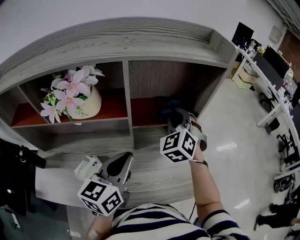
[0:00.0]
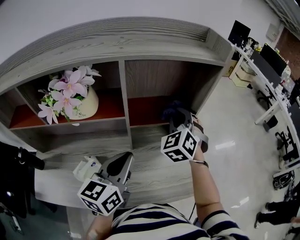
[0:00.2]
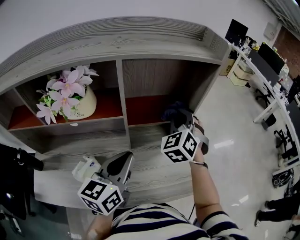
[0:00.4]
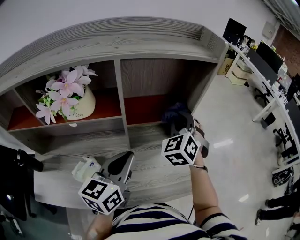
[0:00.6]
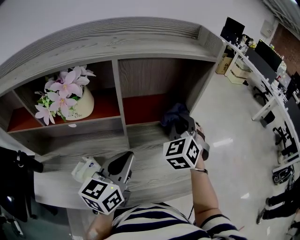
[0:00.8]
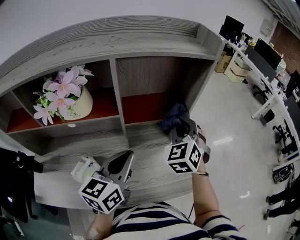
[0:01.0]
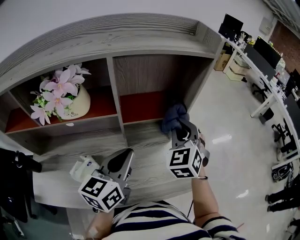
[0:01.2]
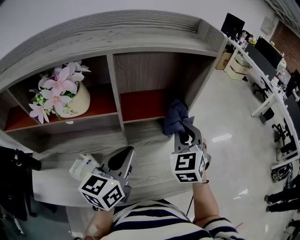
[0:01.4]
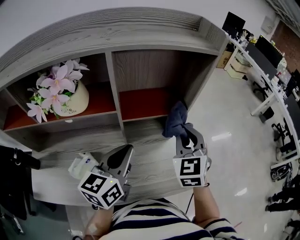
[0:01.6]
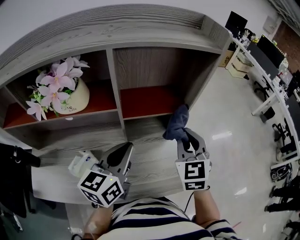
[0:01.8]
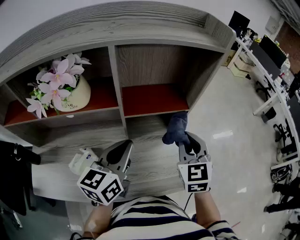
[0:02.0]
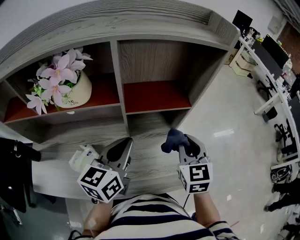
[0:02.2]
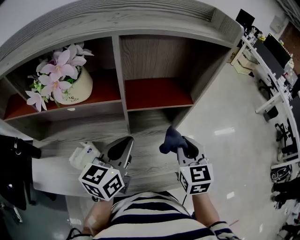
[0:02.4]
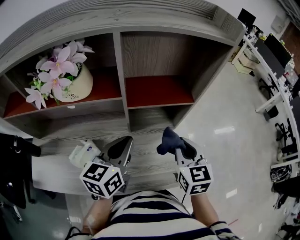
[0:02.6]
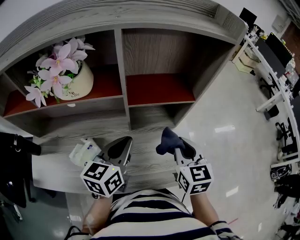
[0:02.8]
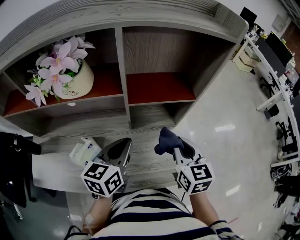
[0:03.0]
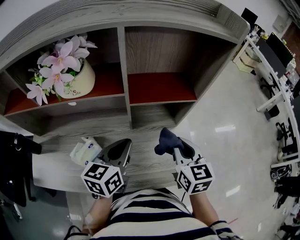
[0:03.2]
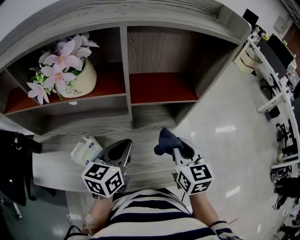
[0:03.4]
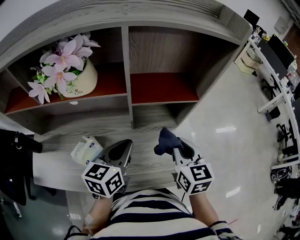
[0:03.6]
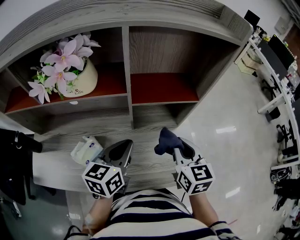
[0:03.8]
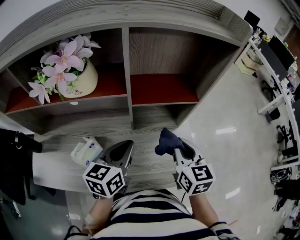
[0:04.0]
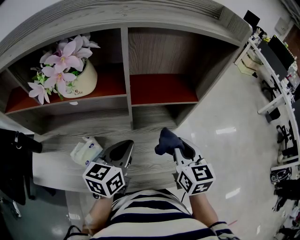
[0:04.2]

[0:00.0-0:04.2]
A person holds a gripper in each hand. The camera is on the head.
0.0 to 1.4 s: The right gripper shifts approximately 10 cm to the right and backward.
1.4 to 2.8 s: The left gripper heads downward, covering roughly 5 cm. The right gripper shifts some 10 cm backward and downward, and changes its angle by about 30 degrees.
2.8 to 4.2 s: The grippers move only a little.

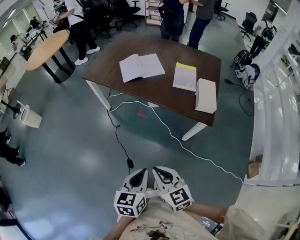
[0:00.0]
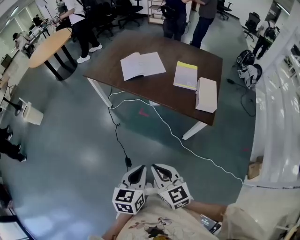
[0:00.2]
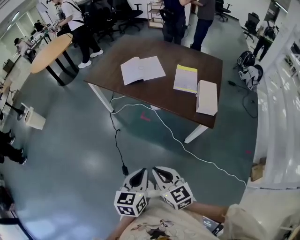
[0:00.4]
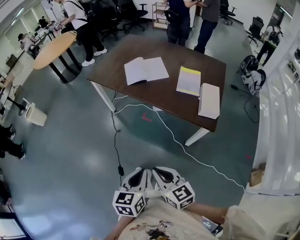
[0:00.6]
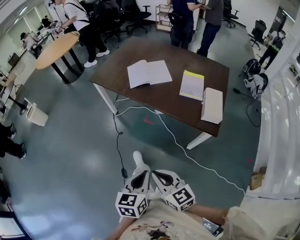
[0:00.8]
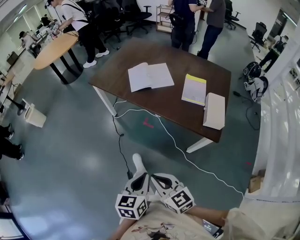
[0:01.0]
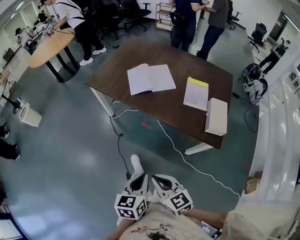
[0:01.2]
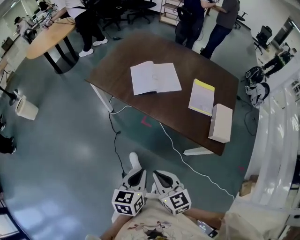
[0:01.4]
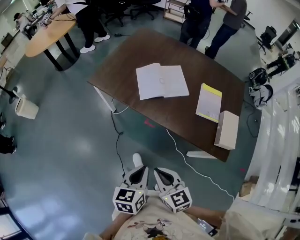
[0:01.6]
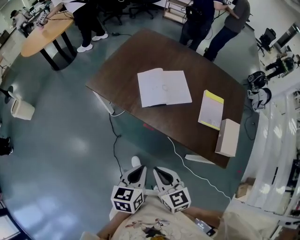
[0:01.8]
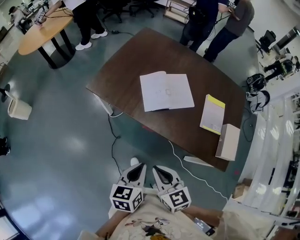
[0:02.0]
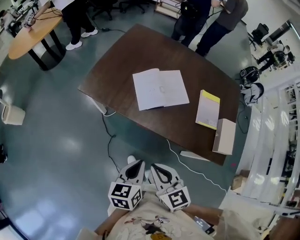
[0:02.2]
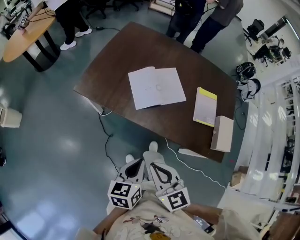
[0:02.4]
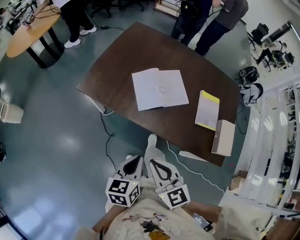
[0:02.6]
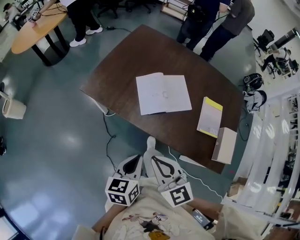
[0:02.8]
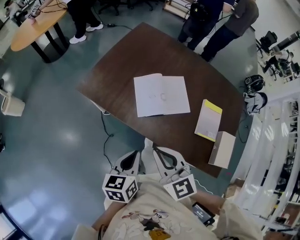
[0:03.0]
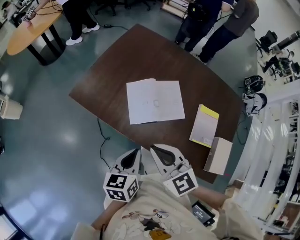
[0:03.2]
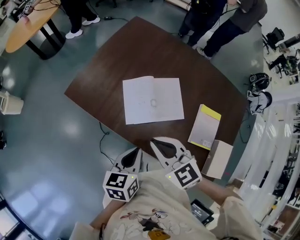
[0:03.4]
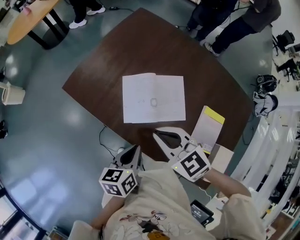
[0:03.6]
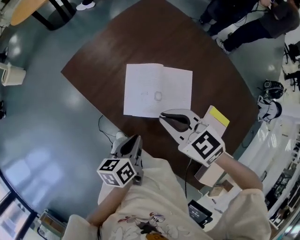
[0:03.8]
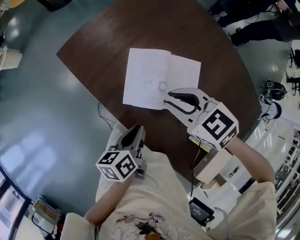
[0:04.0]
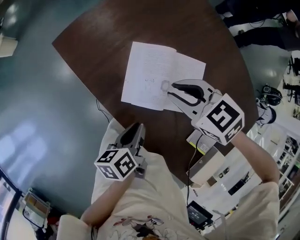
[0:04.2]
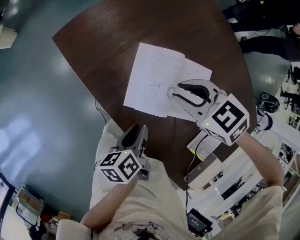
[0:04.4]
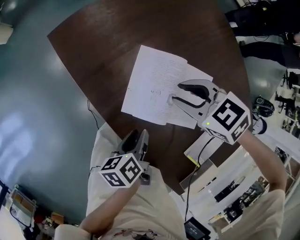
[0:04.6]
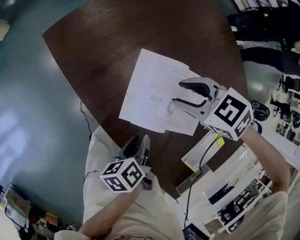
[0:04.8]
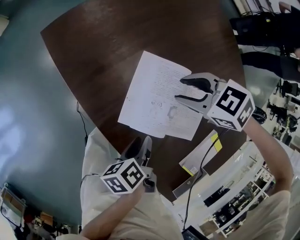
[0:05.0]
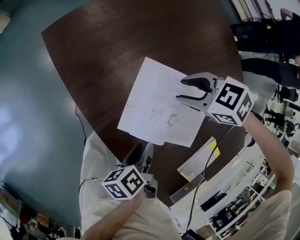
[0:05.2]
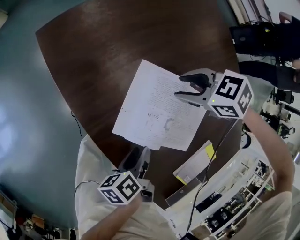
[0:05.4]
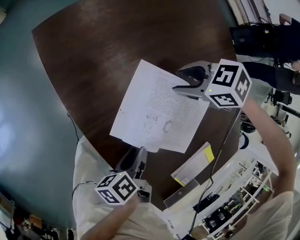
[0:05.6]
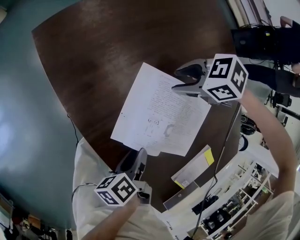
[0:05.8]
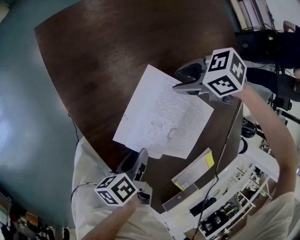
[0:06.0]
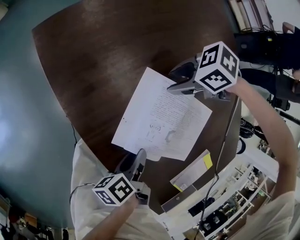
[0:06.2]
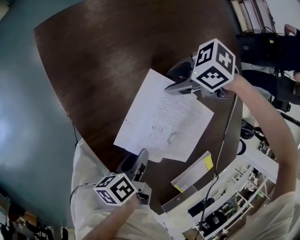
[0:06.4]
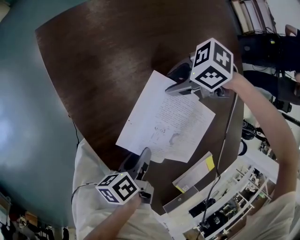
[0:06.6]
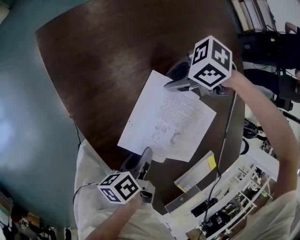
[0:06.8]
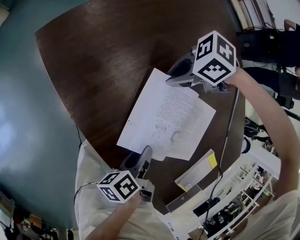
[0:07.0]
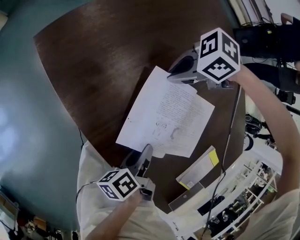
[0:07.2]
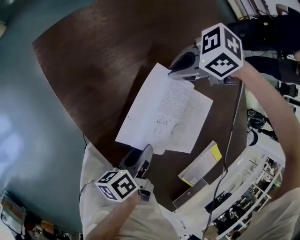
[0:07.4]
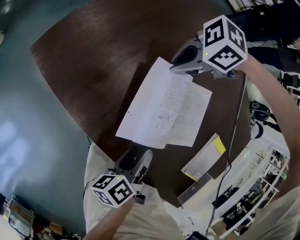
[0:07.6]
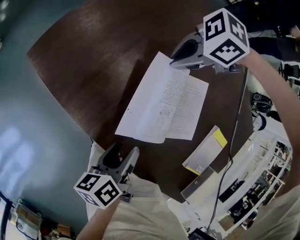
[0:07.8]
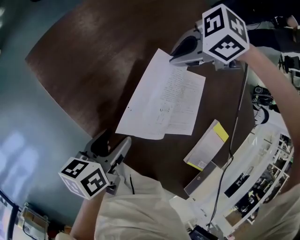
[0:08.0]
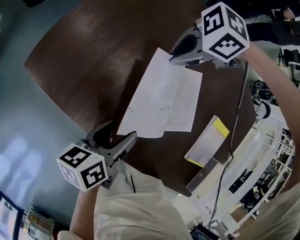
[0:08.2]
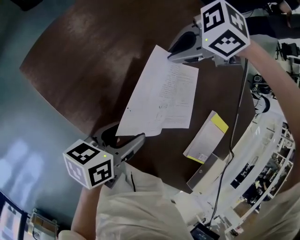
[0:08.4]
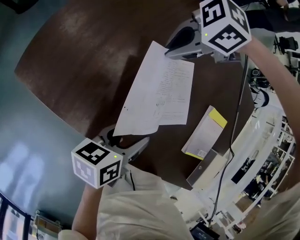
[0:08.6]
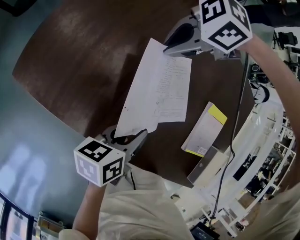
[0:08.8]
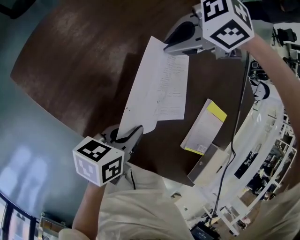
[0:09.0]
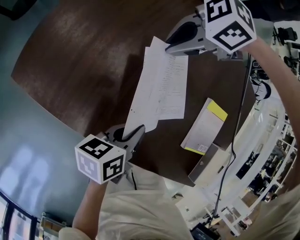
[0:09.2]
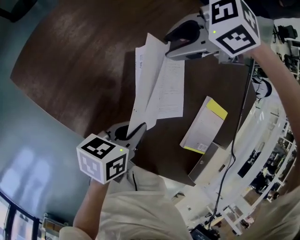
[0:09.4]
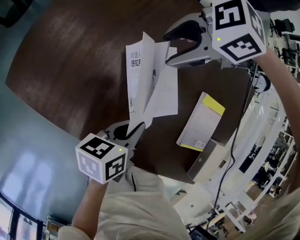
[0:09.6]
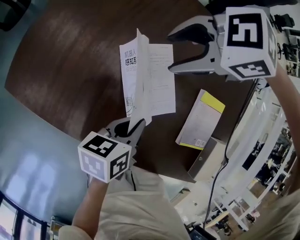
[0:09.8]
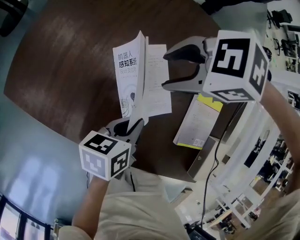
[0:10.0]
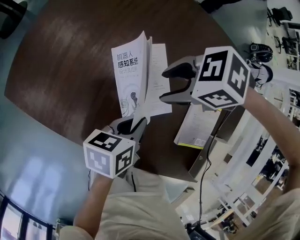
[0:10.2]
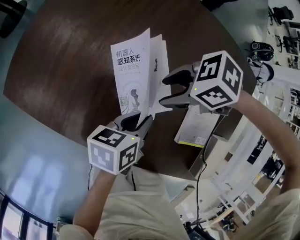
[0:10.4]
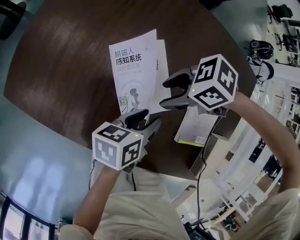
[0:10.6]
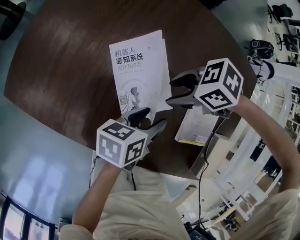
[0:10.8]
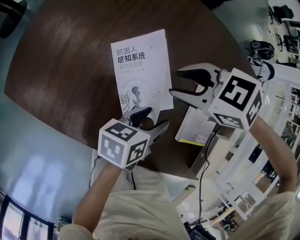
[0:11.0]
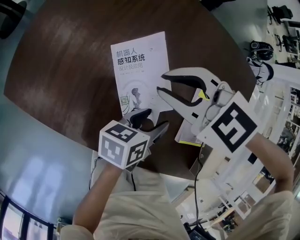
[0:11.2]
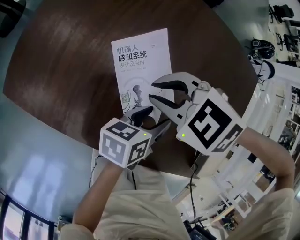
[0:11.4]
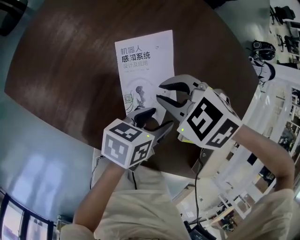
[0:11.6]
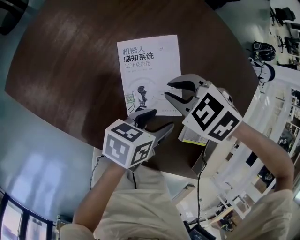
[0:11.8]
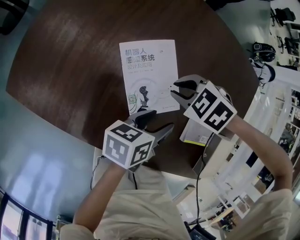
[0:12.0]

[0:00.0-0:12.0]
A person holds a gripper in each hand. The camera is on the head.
0.0 to 1.6 s: The grippers both shift forward by about 25 cm.
1.6 to 3.0 s: The two grippers go about 25 cm forward.
3.0 to 4.4 s: The right gripper shifts by approximately 35 cm, rotates about 50 degrees, and opens its fingers; the left gripper travels downward by roughly 20 cm, rotates around the line of its fingers by about 40 degrees, counterclockwise from behind, and opens.
4.4 to 6.0 s: The right gripper is displaced downward by some 15 cm, turns by about 40 degrees, and opens up. The left gripper goes approximately 10 cm downward, and swivels roughly 30 degrees.
6.0 to 7.6 s: Both grippers move upward, about 5 cm. The right gripper closes up.
7.6 to 9.0 s: The right gripper ends up roughly 10 cm from where it was, while the left gripper shifts by about 5 cm, turns by approximately 50 degrees, and closes up.
9.0 to 10.4 s: The right gripper ends up approximately 15 cm from where it was, changes its angle by roughly 30 degrees, and opens, while the left gripper shifts by some 10 cm.
10.4 to 12.0 s: The left gripper opens up, while the right gripper goes upward and returns, roughly 10 cm each way, turns by some 30 degrees, and closes.

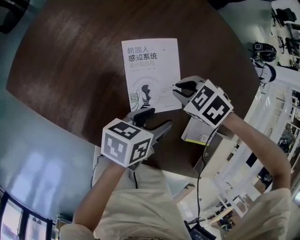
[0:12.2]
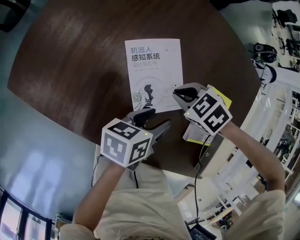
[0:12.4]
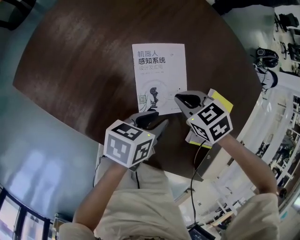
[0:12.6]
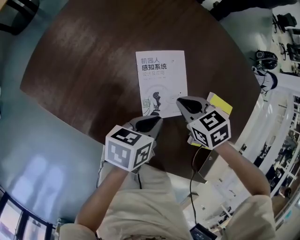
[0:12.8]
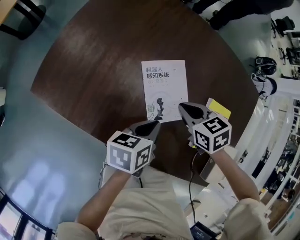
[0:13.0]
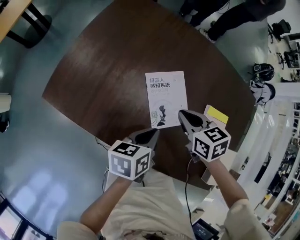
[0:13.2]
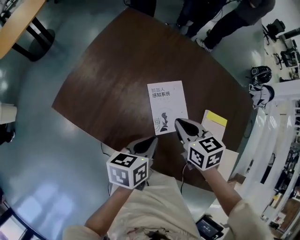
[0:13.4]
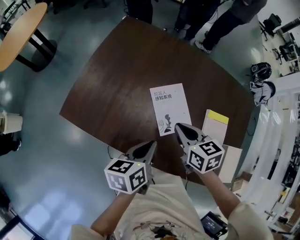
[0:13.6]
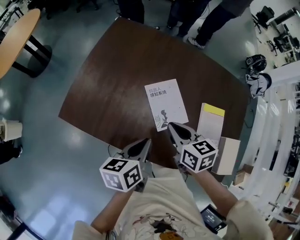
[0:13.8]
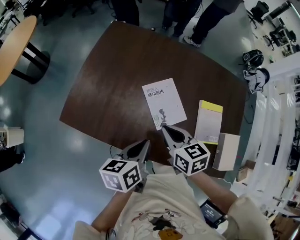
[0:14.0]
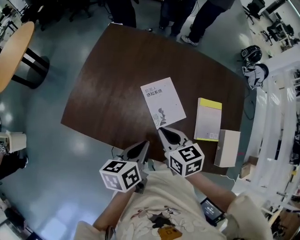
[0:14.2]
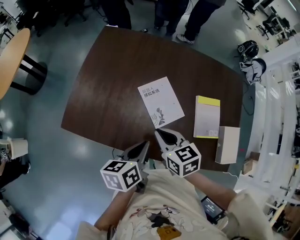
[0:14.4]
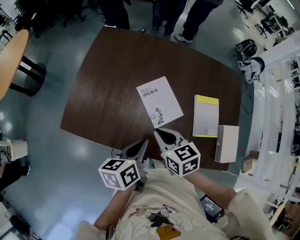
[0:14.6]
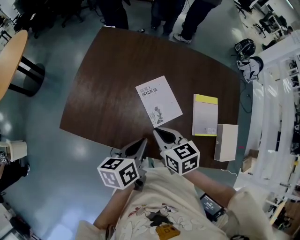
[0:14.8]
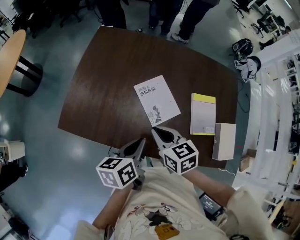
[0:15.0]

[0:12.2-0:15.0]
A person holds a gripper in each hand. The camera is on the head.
12.2 to 13.6 s: The two grippers go some 15 cm upward. The right gripper points its fingers roughly 30 degrees further upward. The left gripper closes its fingers.
13.6 to 15.0 s: The right gripper heads backward, covering some 5 cm.

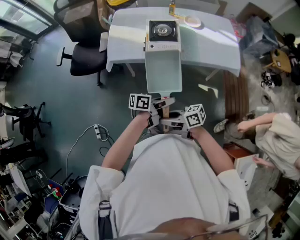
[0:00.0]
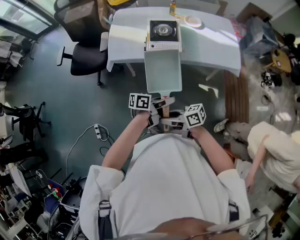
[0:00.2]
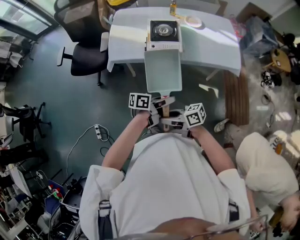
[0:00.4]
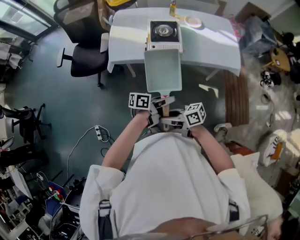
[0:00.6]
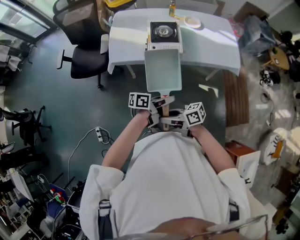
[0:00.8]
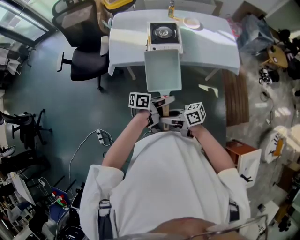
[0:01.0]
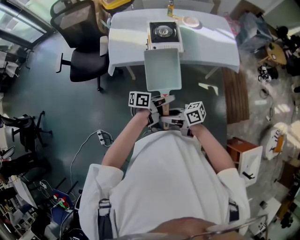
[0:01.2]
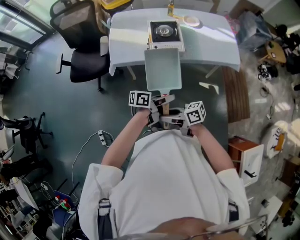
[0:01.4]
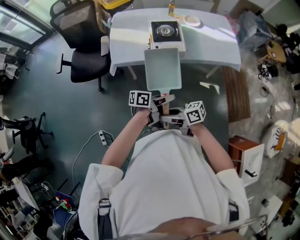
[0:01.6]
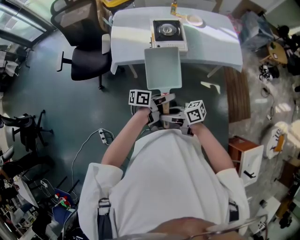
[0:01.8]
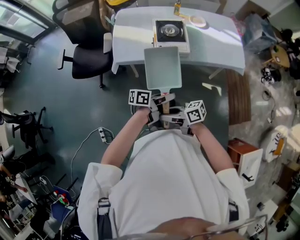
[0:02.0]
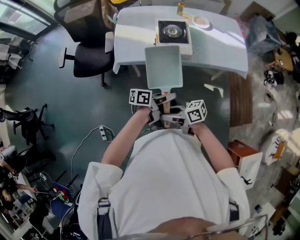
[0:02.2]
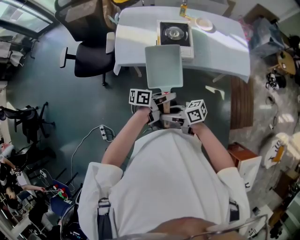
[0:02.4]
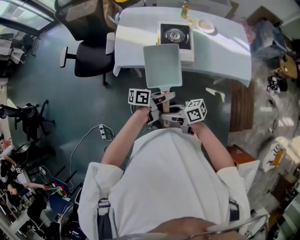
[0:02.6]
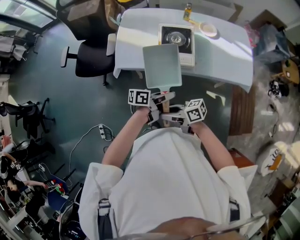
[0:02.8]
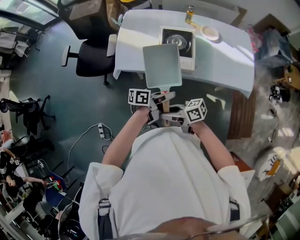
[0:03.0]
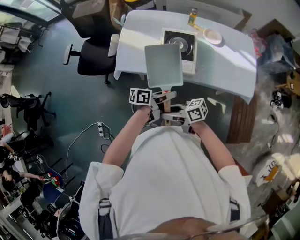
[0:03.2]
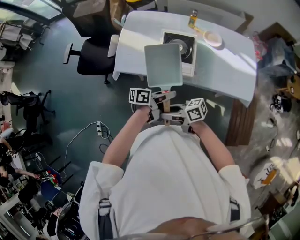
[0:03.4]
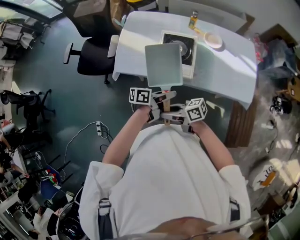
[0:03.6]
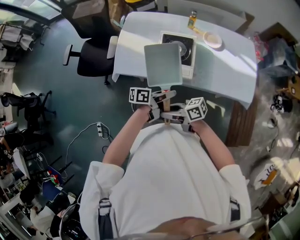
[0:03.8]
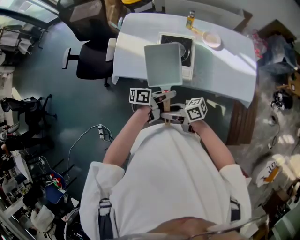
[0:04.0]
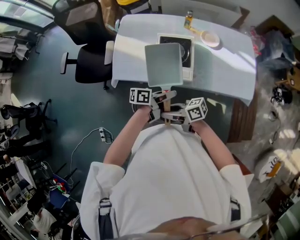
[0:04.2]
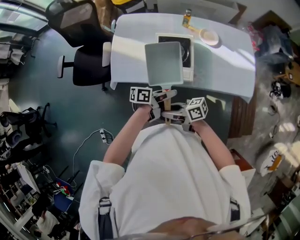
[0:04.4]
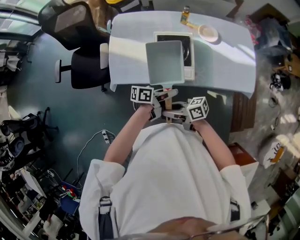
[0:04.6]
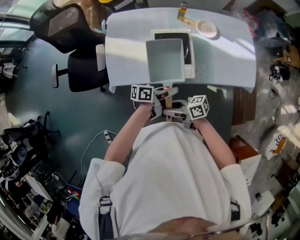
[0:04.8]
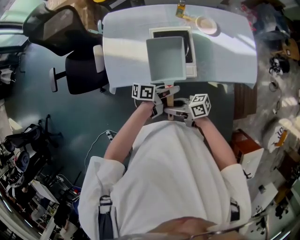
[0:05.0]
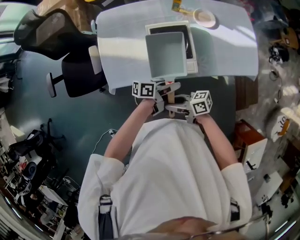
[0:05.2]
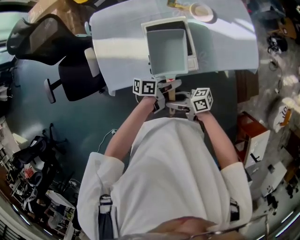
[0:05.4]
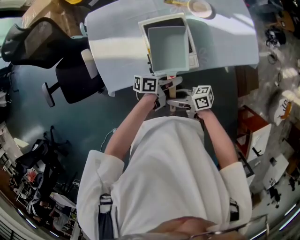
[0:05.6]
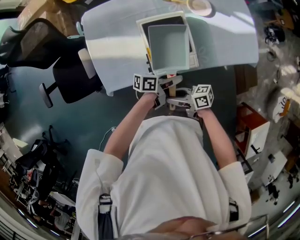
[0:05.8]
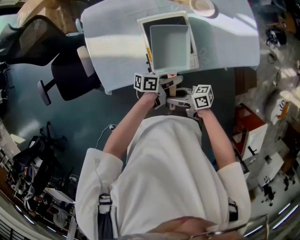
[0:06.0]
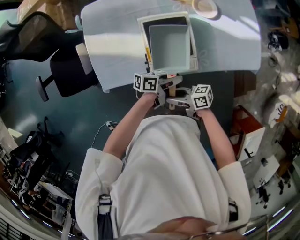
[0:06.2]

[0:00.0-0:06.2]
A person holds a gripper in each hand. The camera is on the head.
0.0 to 1.6 s: The right gripper ends up approximately 10 cm from where it was. Meanwhile the left gripper moves approximately 10 cm.
1.6 to 3.2 s: The left gripper moves about 20 cm, while the right gripper moves roughly 20 cm.
3.2 to 4.6 s: The left gripper moves roughly 10 cm. Meanwhile the right gripper moves about 10 cm.
4.6 to 6.2 s: Both grippers travel together downward, about 10 cm.
